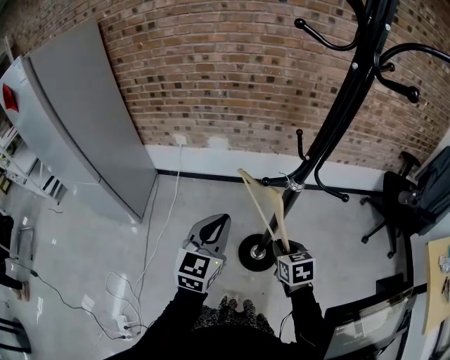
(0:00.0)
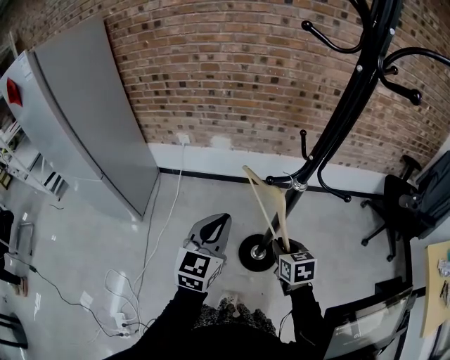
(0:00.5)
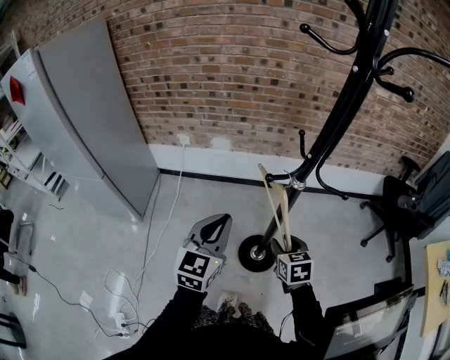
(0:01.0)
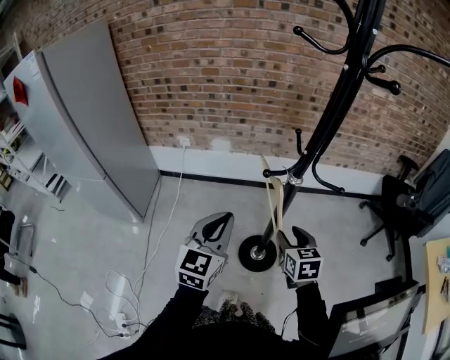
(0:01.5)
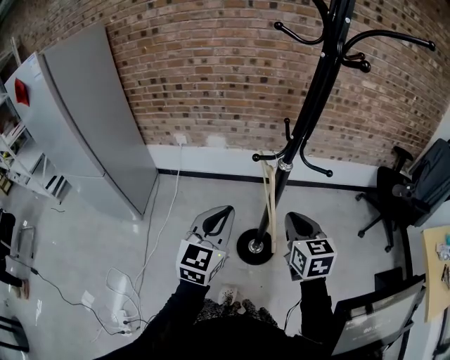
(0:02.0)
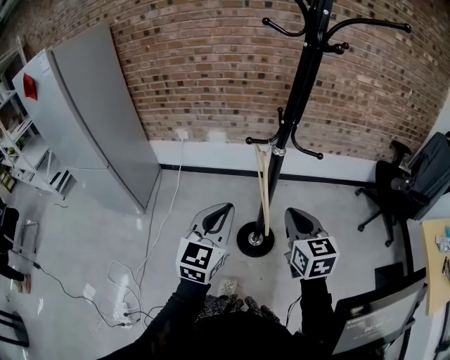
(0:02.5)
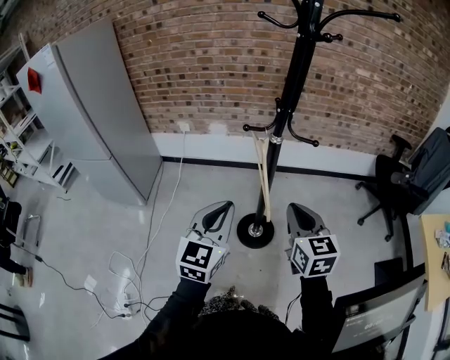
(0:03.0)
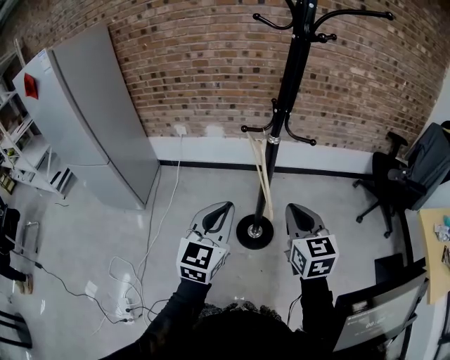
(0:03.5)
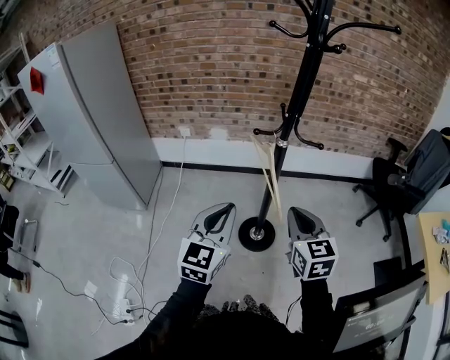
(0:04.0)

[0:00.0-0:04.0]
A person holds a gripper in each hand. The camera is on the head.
0:00.0 to 0:02.0: The right gripper travels upward by approximately 15 cm, rotates approximately 20 degrees, and opens and closes again. The left gripper goes roughly 5 cm backward.
0:02.0 to 0:04.0: The grippers both shift backward by roughly 10 cm.

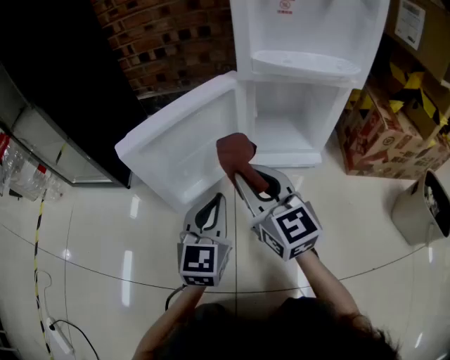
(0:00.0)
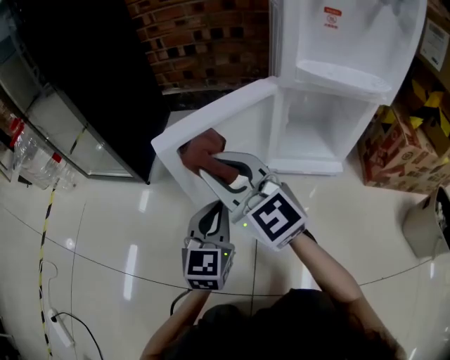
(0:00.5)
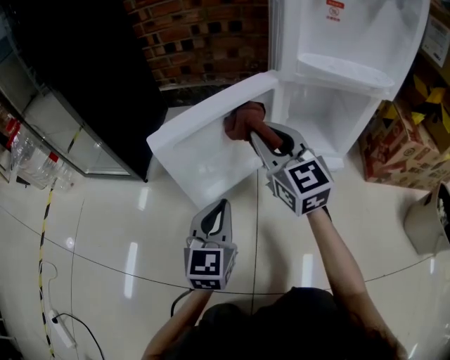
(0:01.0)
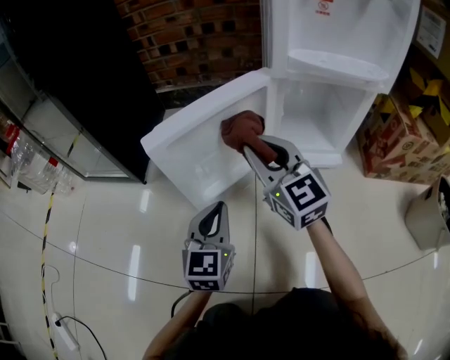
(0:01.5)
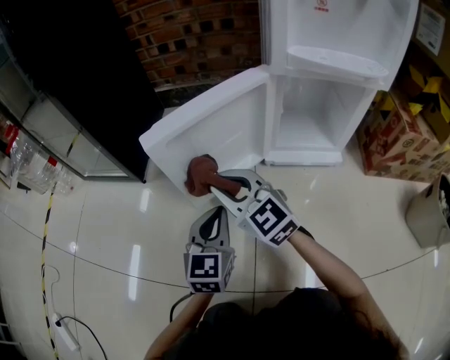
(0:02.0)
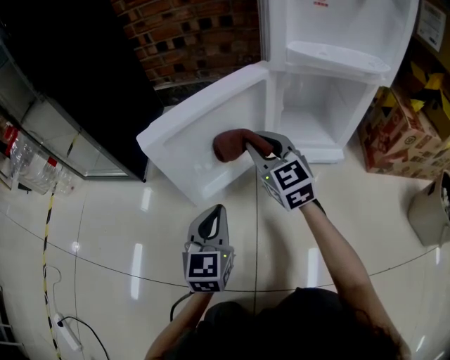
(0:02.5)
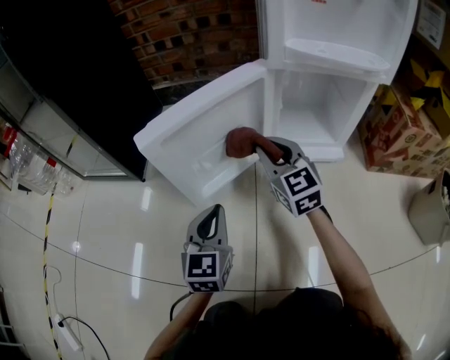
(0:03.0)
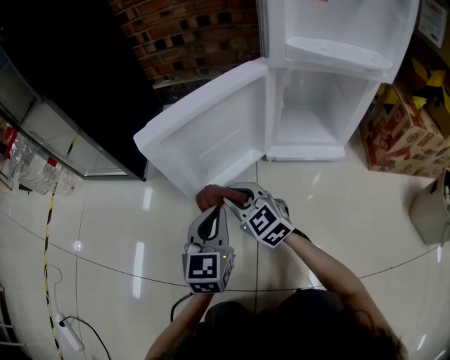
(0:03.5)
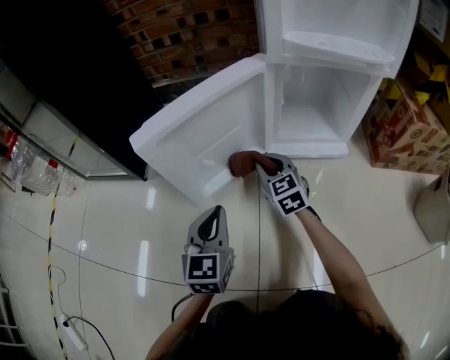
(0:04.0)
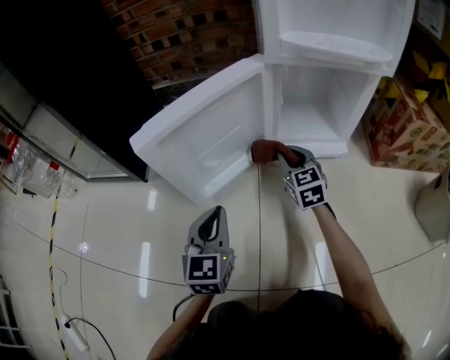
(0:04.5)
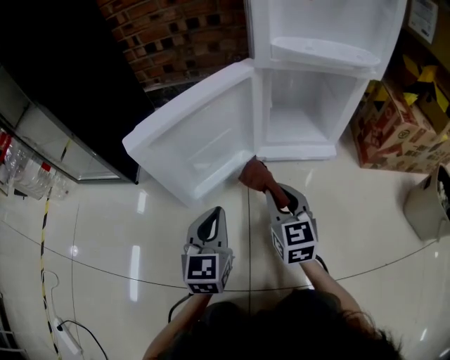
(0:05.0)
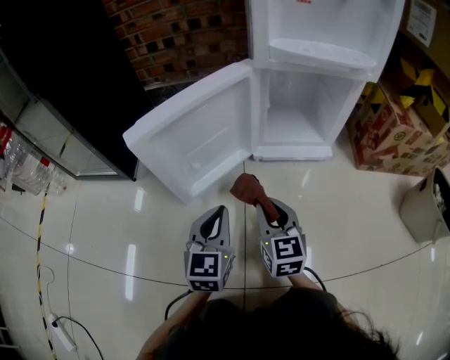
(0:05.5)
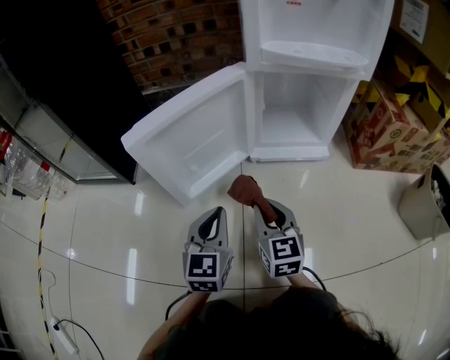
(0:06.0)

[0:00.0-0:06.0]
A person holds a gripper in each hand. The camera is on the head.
0:00.0 to 0:02.0: The left gripper is displaced to the left and downward by approximately 10 cm. The right gripper moves left and right over about 15 cm, changing direction 2 times, and swivels some 30 degrees.
0:02.0 to 0:04.0: The right gripper swings left and right, about 15 cm each way, with 2 reversals, and changes its angle by about 30 degrees.
0:04.0 to 0:06.0: The right gripper shifts about 15 cm backward, and turns by roughly 20 degrees.

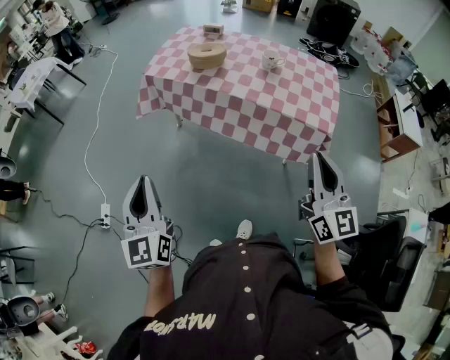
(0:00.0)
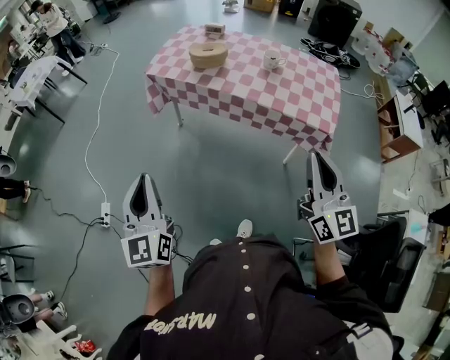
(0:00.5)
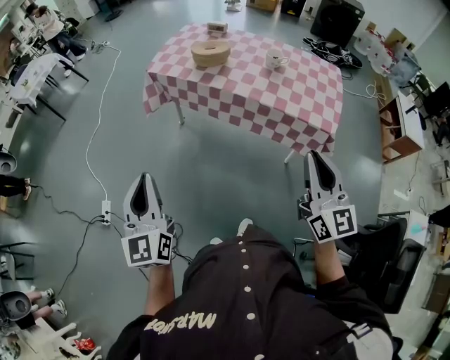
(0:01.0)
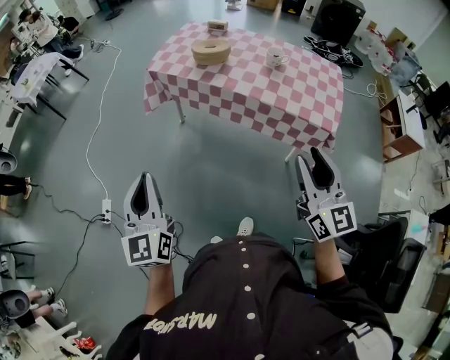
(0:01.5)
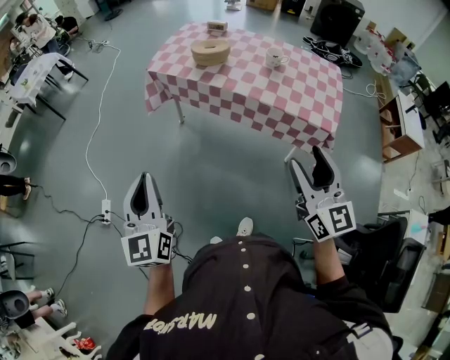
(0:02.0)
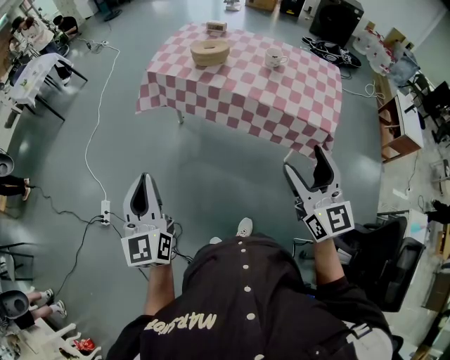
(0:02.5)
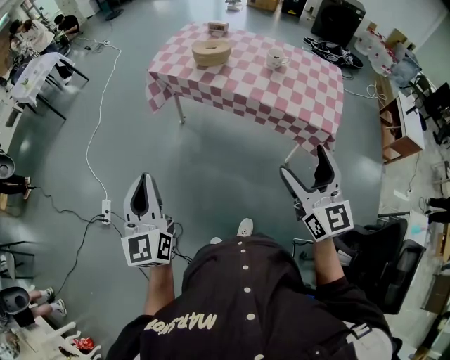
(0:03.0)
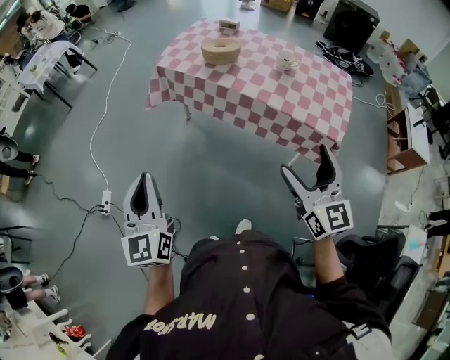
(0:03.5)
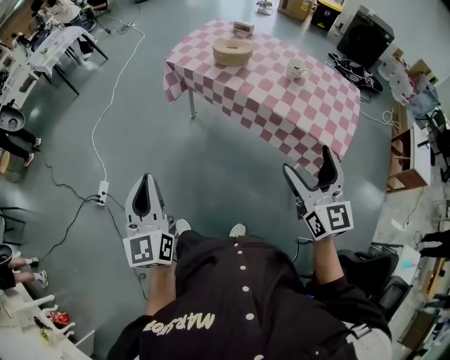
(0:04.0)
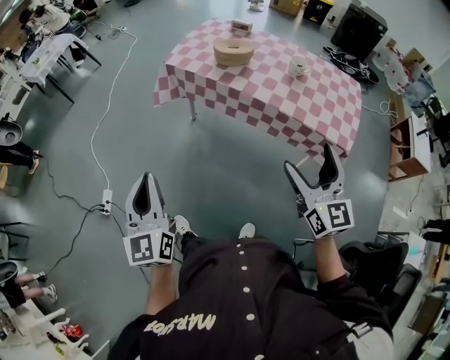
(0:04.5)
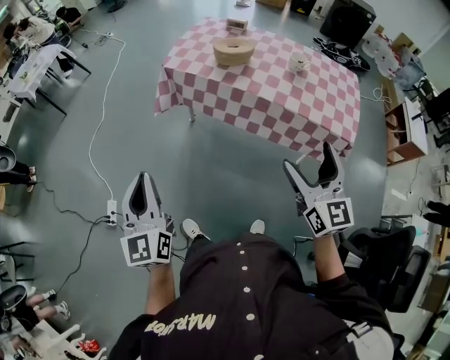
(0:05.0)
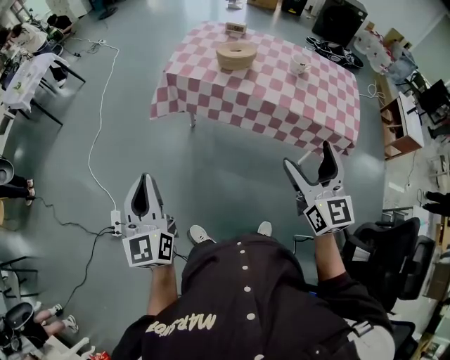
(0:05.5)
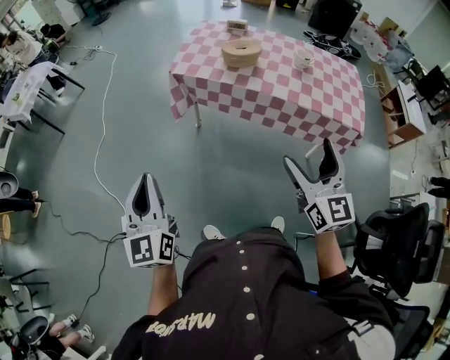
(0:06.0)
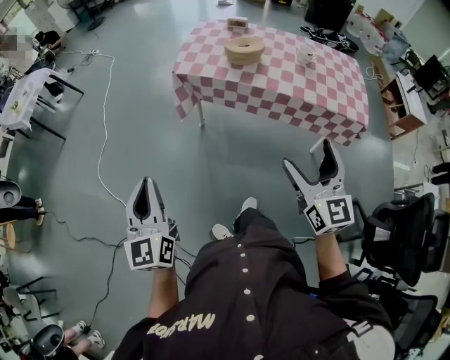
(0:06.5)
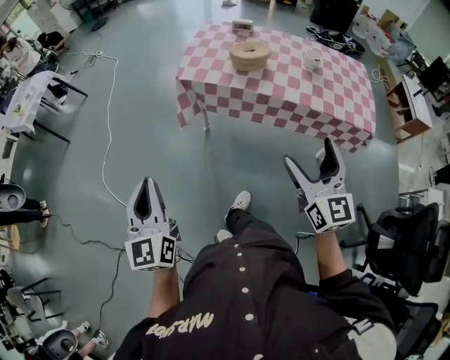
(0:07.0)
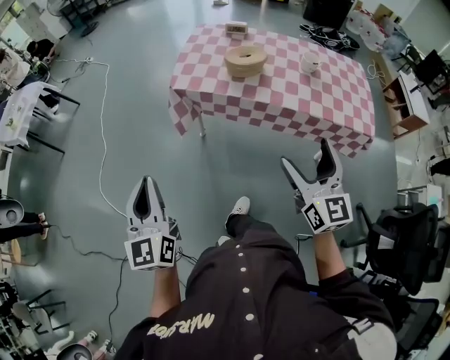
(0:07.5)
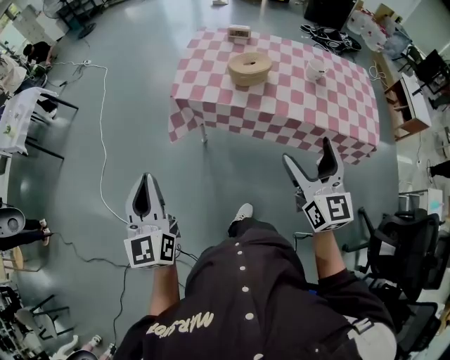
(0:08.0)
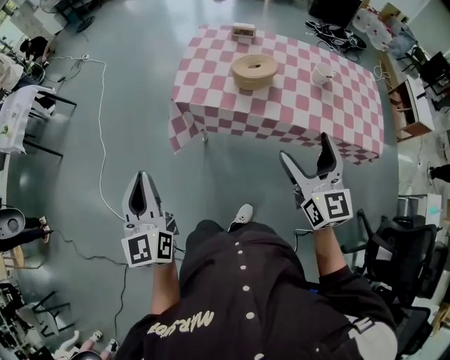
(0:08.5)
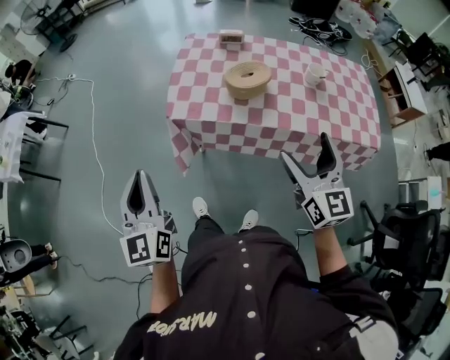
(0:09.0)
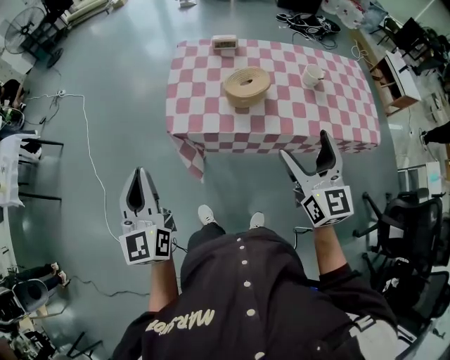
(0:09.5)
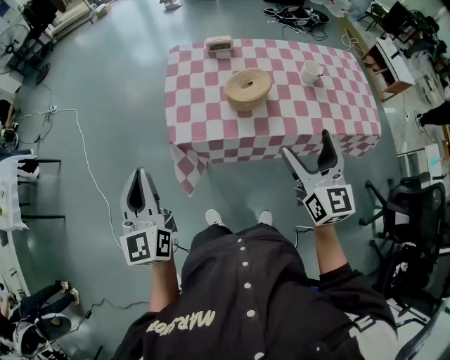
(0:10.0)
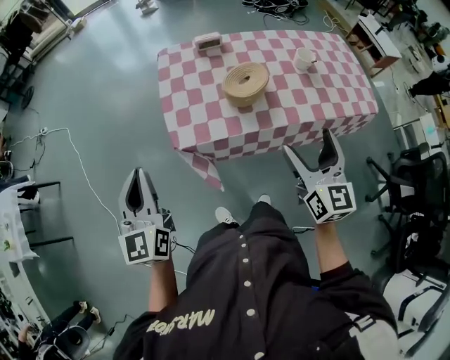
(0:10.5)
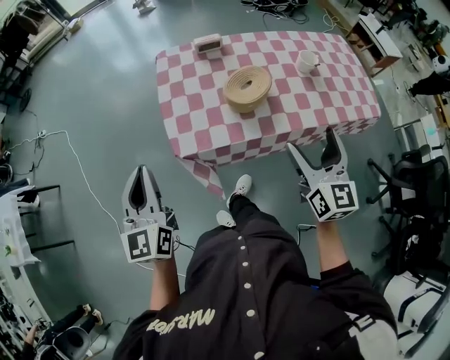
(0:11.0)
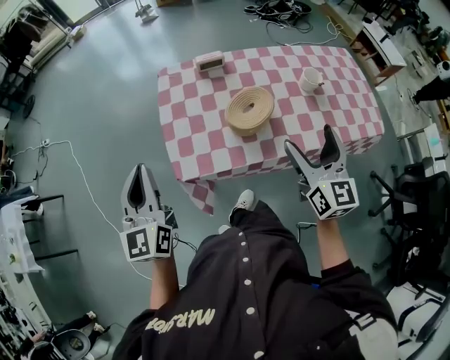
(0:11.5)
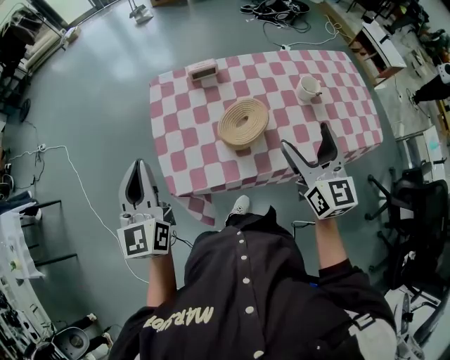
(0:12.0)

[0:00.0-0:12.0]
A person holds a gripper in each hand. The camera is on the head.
0:00.0 to 0:02.0: The right gripper opens.
0:02.0 to 0:04.0: The right gripper heads forward, covering about 5 cm, and opens.
0:04.0 to 0:06.0: The right gripper heads to the left, covering roughly 20 cm, while the left gripper heads to the left and forward, covering approximately 25 cm.
0:06.0 to 0:08.0: The grippers both shift forward by some 20 cm.
0:08.0 to 0:10.0: The right gripper shifts some 20 cm forward, while the left gripper travels forward by about 30 cm.
0:10.0 to 0:12.0: The grippers both shift forward by some 20 cm.

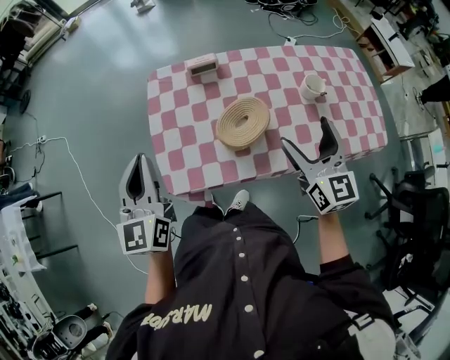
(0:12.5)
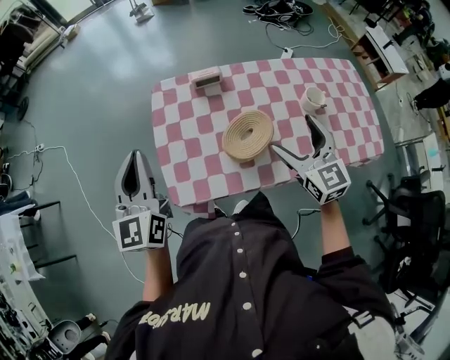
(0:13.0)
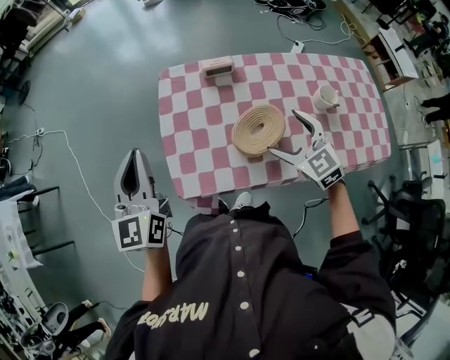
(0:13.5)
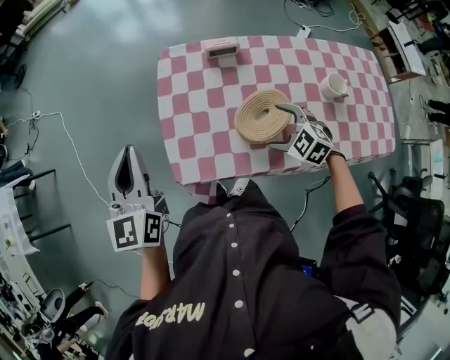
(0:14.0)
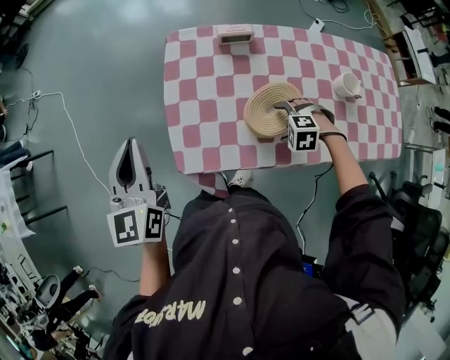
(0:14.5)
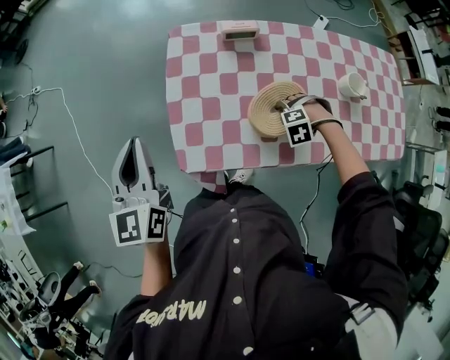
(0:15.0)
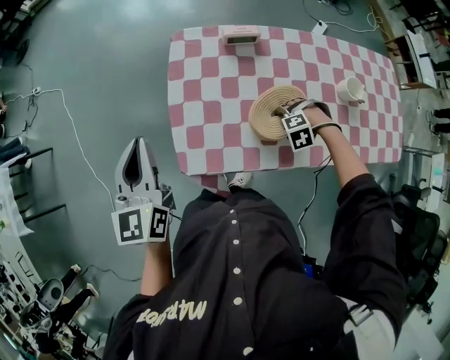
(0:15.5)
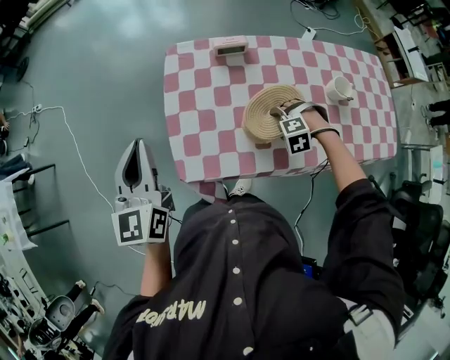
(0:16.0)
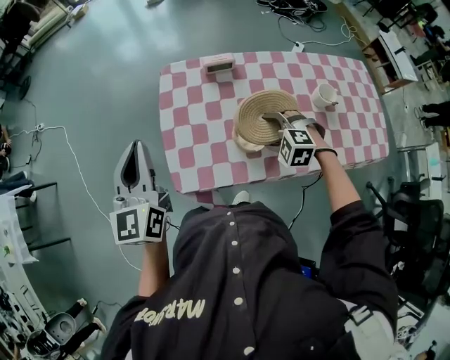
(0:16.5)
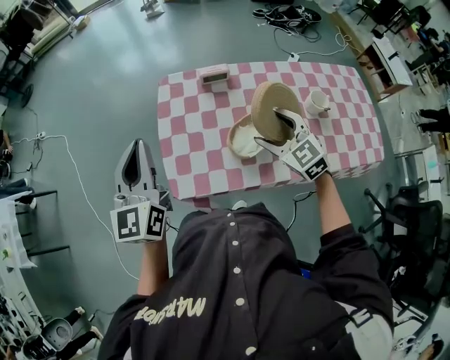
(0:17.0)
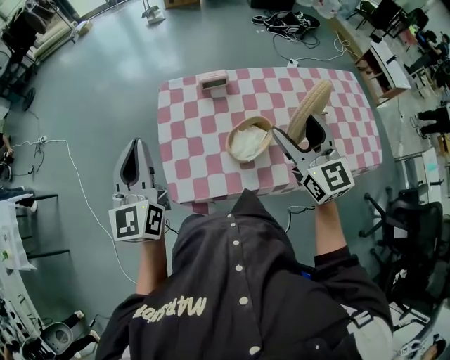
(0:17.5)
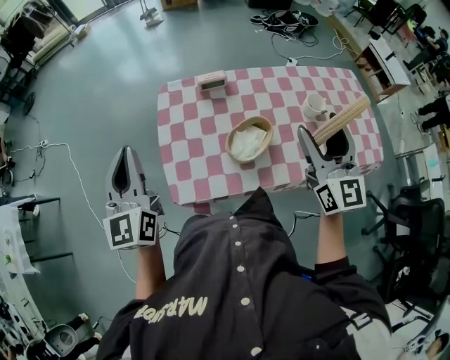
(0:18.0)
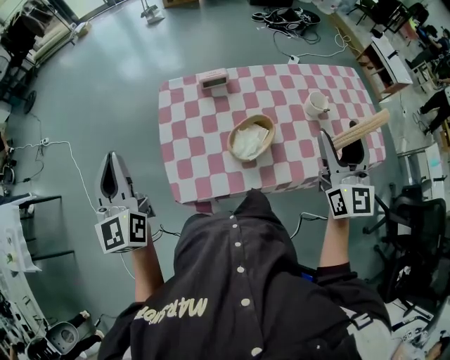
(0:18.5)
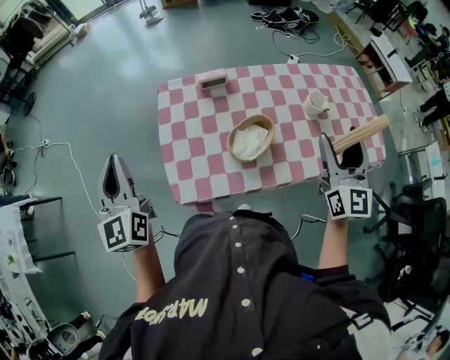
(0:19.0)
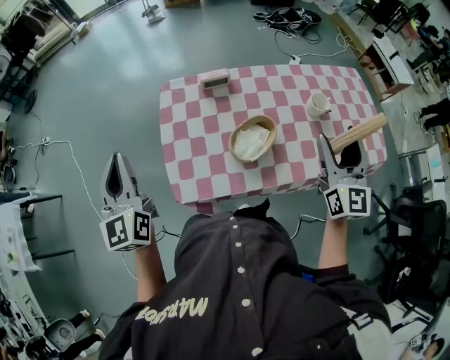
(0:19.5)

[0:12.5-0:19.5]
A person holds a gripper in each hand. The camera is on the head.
0:12.5 to 0:14.5: The right gripper is displaced downward by approximately 30 cm, and points its fingers about 70 degrees further downward, while the left gripper moves approximately 10 cm.
0:16.0 to 0:17.5: The left gripper goes roughly 5 cm upward. Meanwhile the right gripper goes roughly 35 cm upward, and angles its fingers upward, by approximately 80 degrees.
0:17.5 to 0:19.5: The right gripper goes some 10 cm to the right, and turns by approximately 20 degrees. Meanwhile the left gripper moves to the left, approximately 5 cm.
